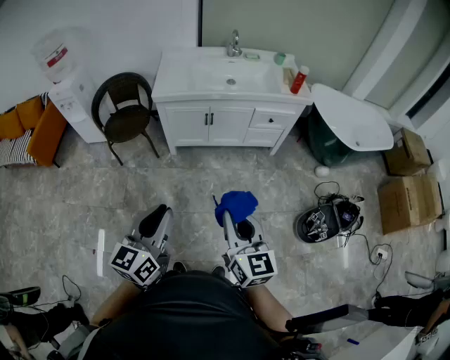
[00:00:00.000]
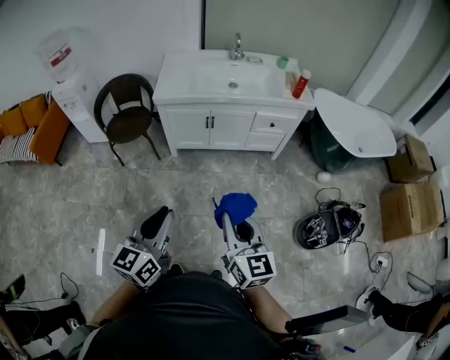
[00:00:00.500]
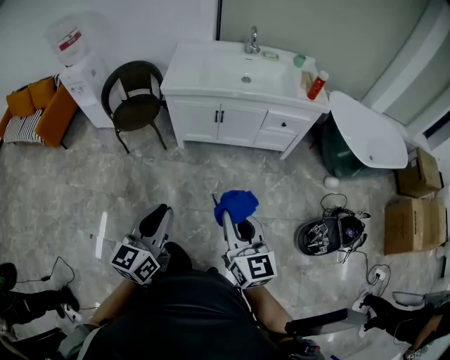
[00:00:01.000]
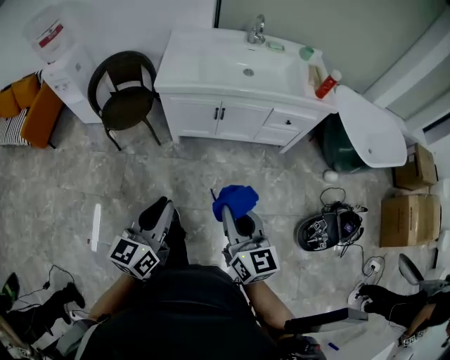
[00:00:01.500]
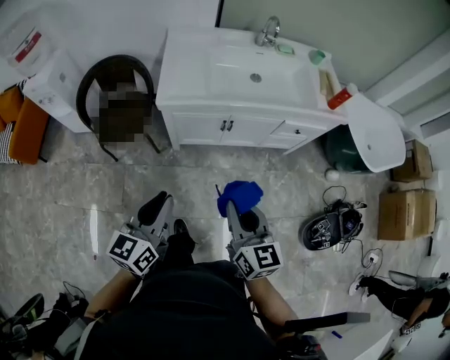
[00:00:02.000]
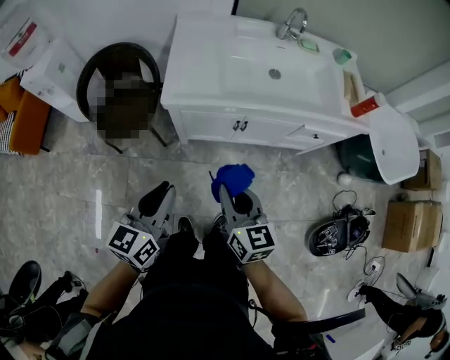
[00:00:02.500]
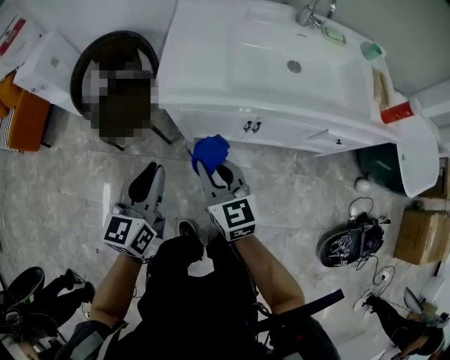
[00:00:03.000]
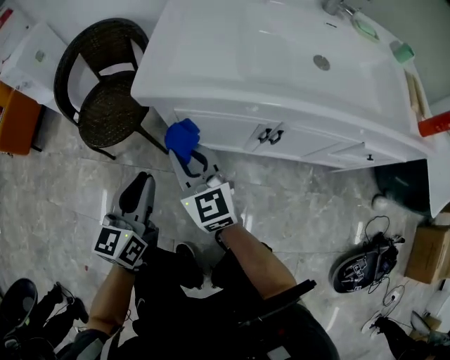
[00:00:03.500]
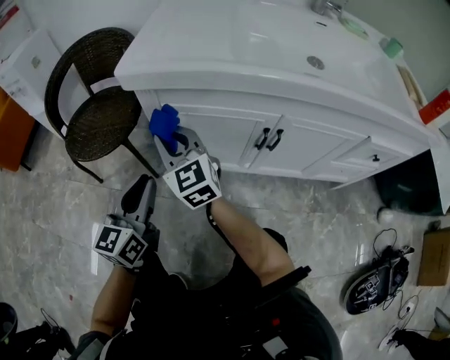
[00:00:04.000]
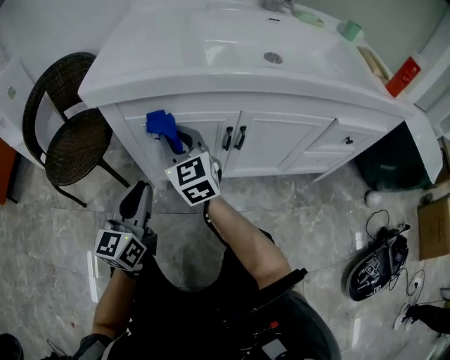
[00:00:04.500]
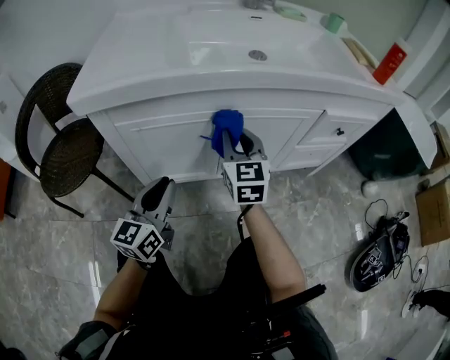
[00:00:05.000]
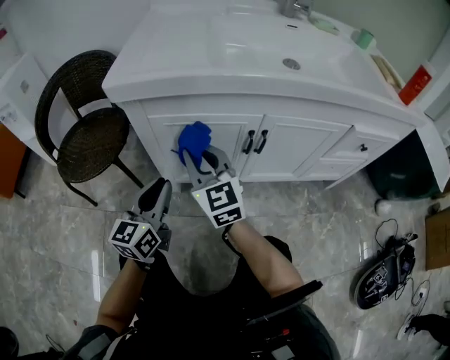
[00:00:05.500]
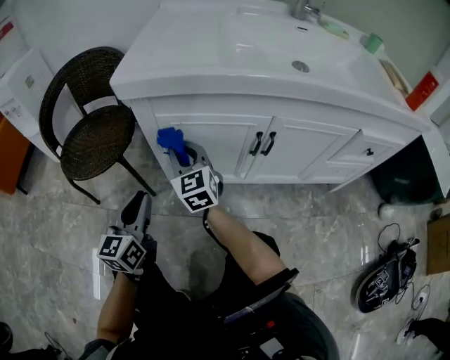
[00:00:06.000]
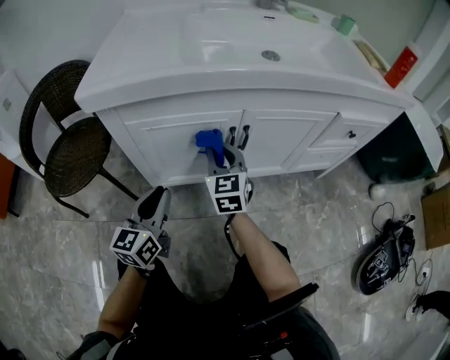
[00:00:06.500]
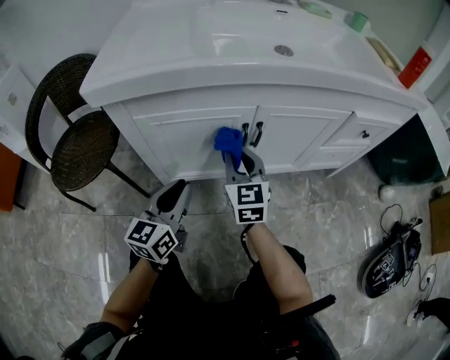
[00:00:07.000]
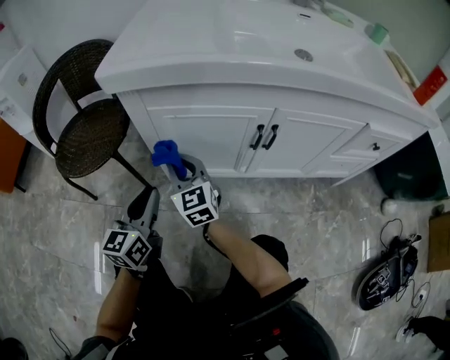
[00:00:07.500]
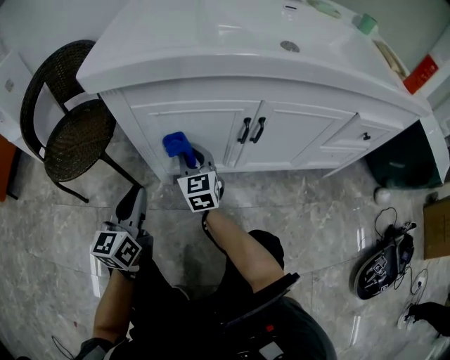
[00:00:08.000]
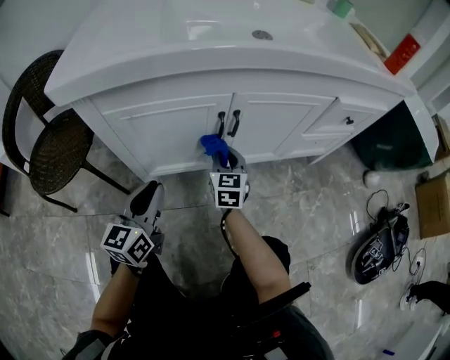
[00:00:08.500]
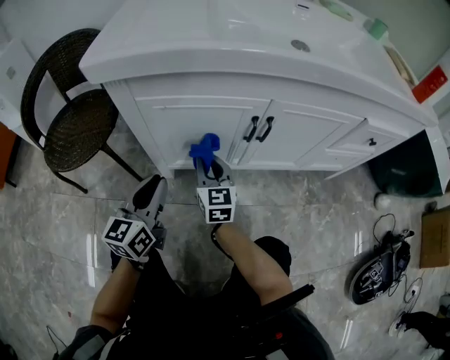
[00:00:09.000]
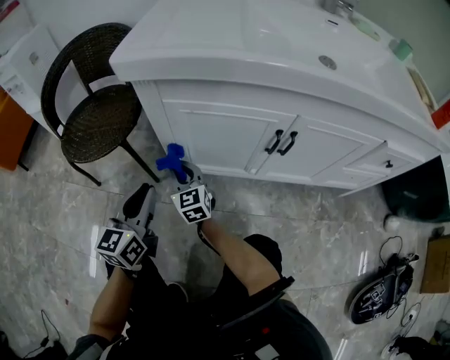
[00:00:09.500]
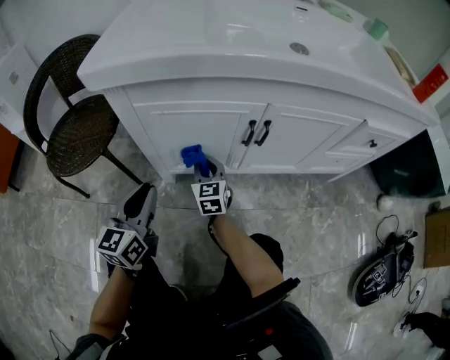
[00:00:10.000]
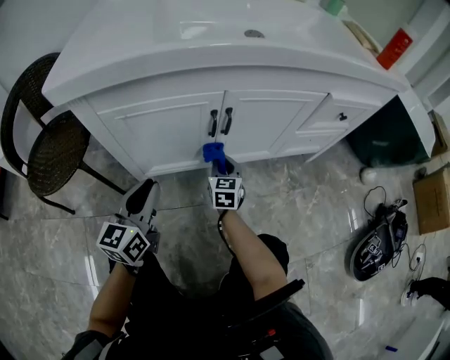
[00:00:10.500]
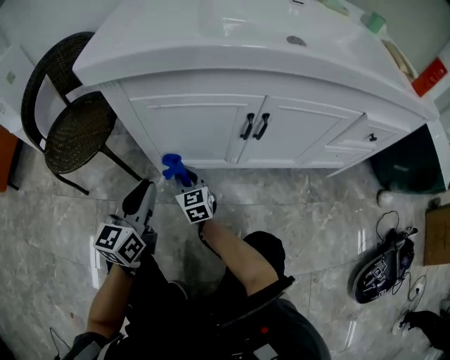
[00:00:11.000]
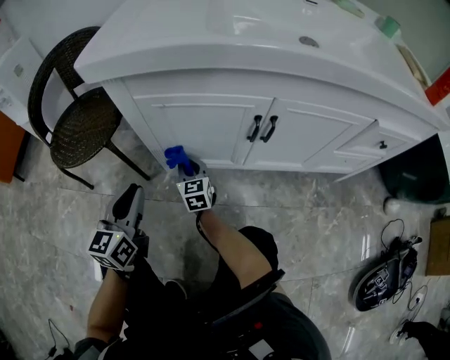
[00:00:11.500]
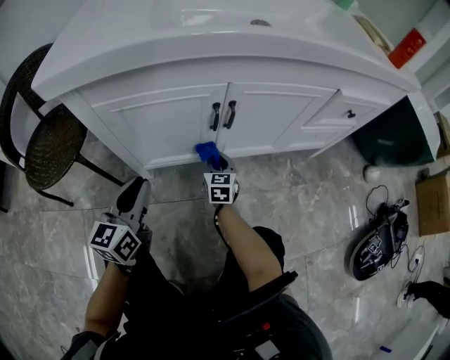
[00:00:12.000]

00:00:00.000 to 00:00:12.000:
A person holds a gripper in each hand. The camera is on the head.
00:00:00.000 to 00:00:02.000: The grippers both shift forward and to the left by some 35 cm.
00:00:02.000 to 00:00:04.000: The left gripper goes about 50 cm downward and forward, while the right gripper is displaced downward, forward and to the left by approximately 60 cm, and rotates some 40 degrees.
00:00:04.000 to 00:00:06.000: The two grippers go roughly 5 cm downward.
00:00:06.000 to 00:00:08.000: The left gripper travels to the right and back again, some 15 cm each way. The right gripper moves left and right over approximately 20 cm, changing direction 2 times.
00:00:08.000 to 00:00:10.000: The right gripper goes about 10 cm downward.
00:00:10.000 to 00:00:12.000: The right gripper swings left and right, about 25 cm each way, with 2 reversals. The left gripper swings left and right, roughly 10 cm each way, with 2 reversals.

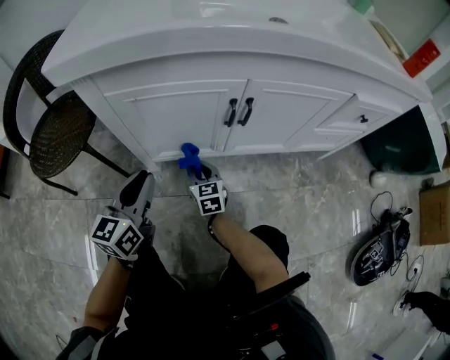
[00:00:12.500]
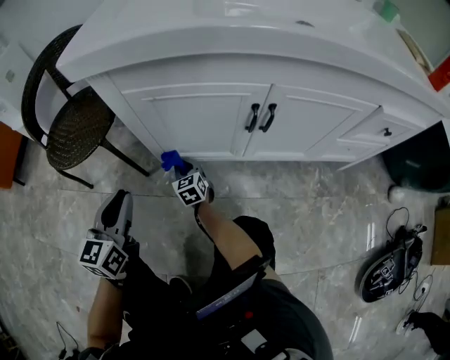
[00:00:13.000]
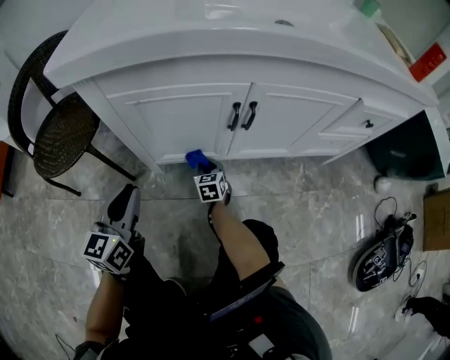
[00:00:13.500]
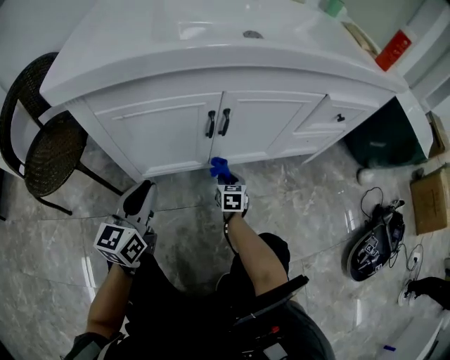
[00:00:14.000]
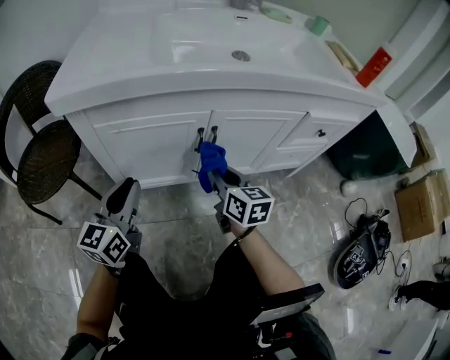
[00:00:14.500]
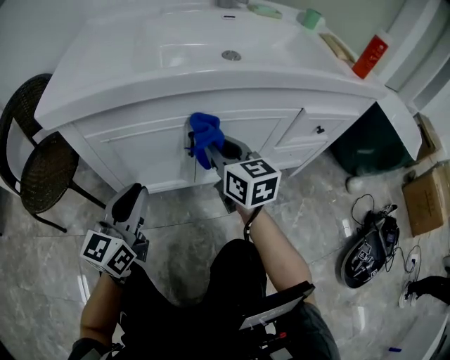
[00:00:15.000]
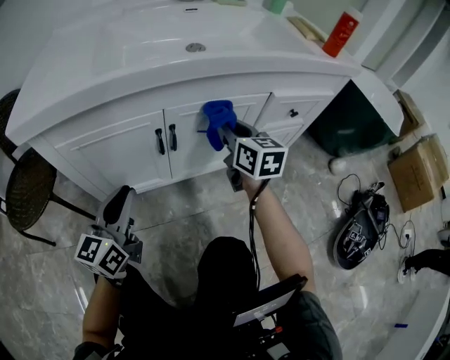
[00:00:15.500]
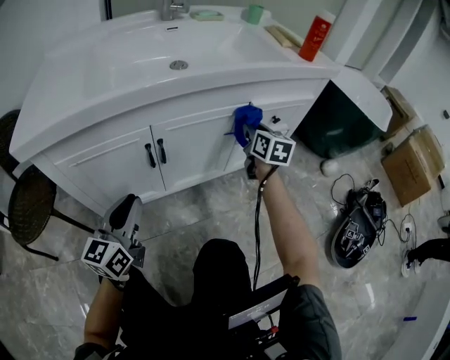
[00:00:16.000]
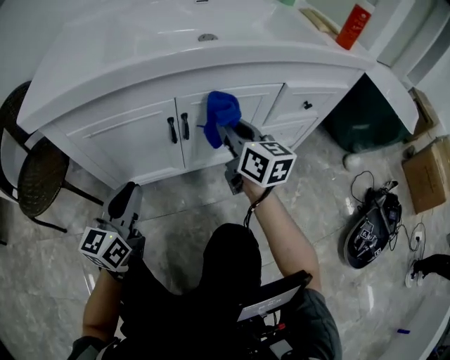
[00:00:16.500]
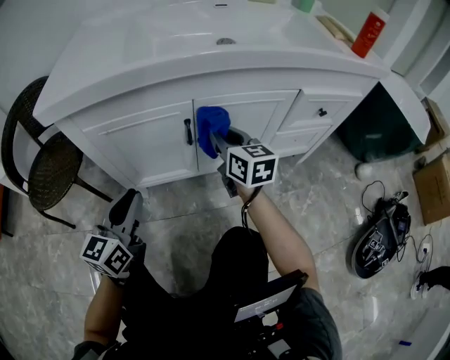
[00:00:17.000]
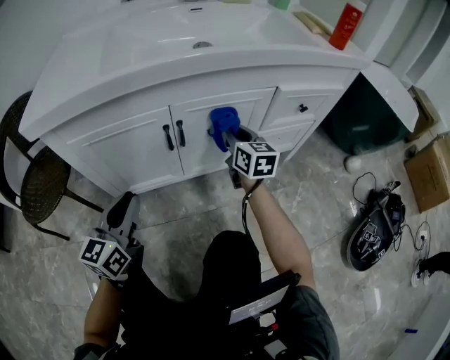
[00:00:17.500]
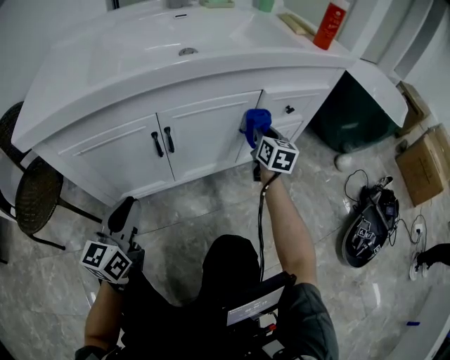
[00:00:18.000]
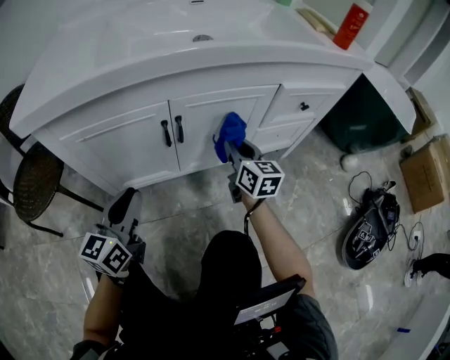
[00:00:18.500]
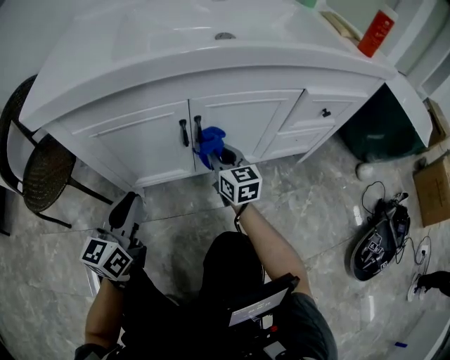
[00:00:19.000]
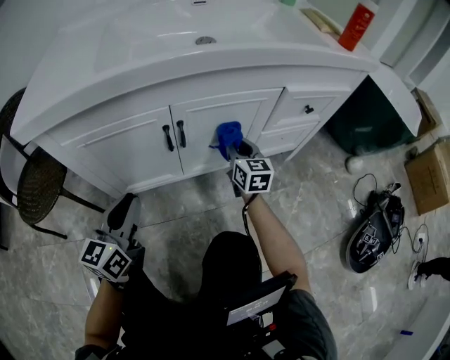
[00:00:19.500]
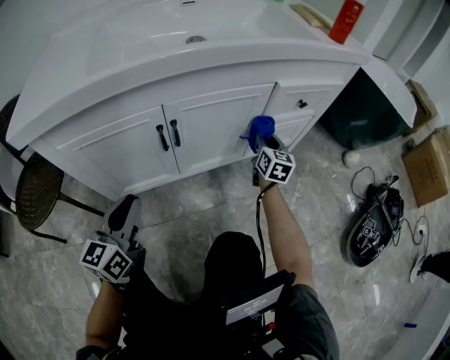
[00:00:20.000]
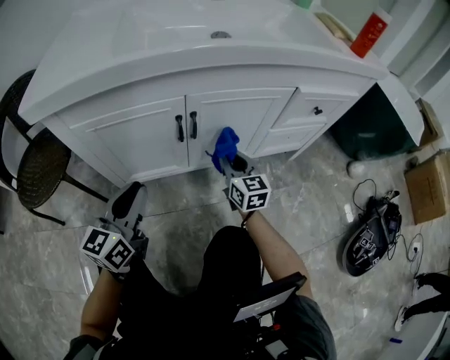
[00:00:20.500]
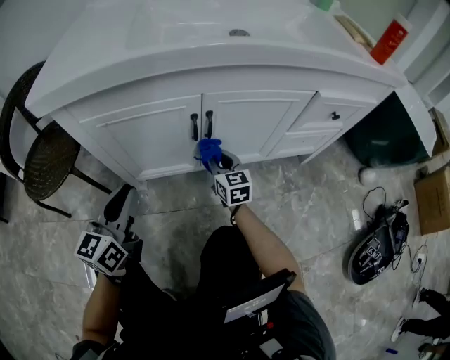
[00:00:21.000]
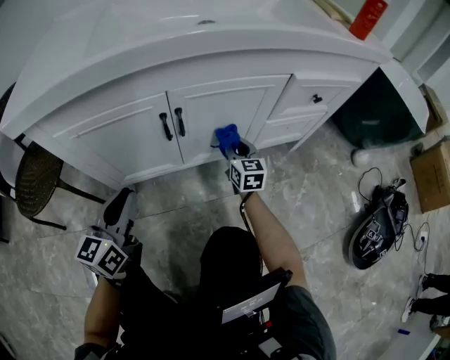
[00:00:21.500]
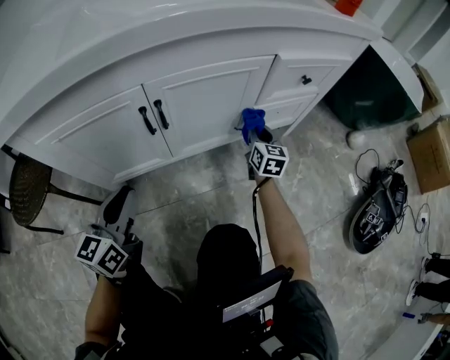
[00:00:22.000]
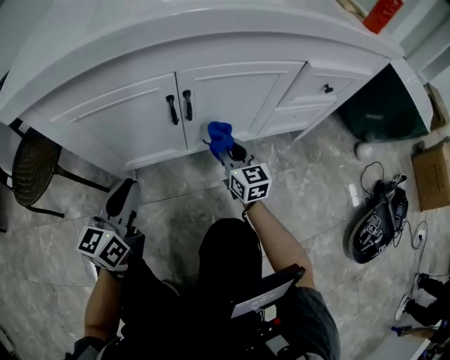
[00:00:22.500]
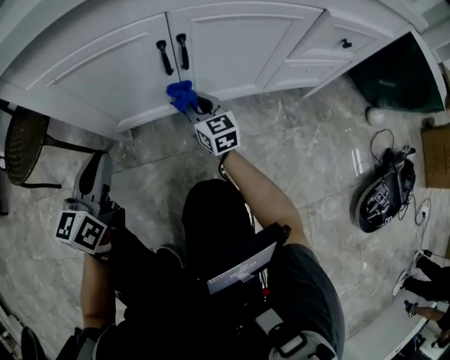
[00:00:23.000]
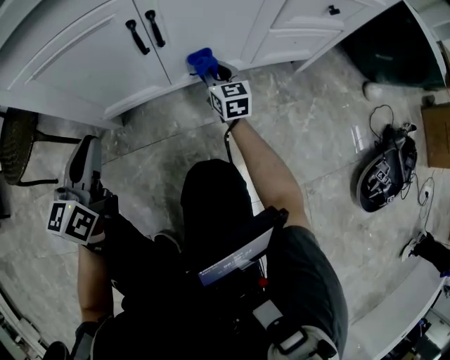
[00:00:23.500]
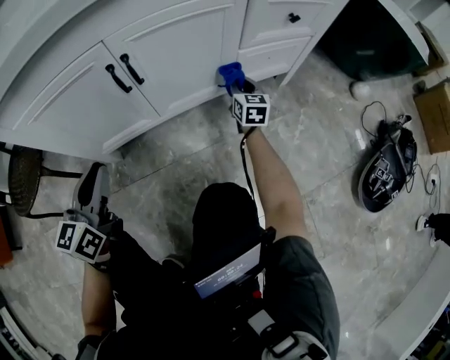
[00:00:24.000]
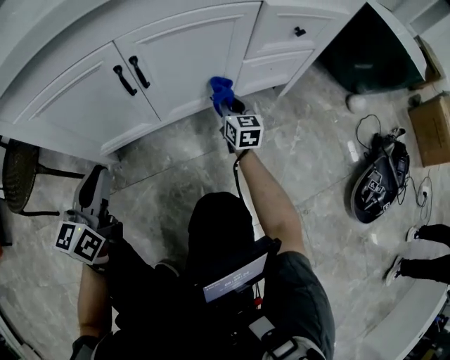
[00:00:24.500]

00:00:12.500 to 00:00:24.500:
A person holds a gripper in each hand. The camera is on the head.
00:00:12.500 to 00:00:14.500: The right gripper is displaced upward by some 20 cm. Meanwhile the left gripper moves upward, about 5 cm.
00:00:14.500 to 00:00:16.500: The right gripper travels upward and forward by about 10 cm, and travels to the right and back again, about 25 cm each way; the left gripper goes roughly 5 cm to the right.
00:00:16.500 to 00:00:18.500: The right gripper moves left and right over some 25 cm, changing direction 2 times.
00:00:18.500 to 00:00:20.500: The right gripper goes left and right, approximately 25 cm each way, reversing 2 times.
00:00:20.500 to 00:00:22.500: The right gripper moves left and right over some 25 cm, changing direction 2 times. The left gripper swings left and right, approximately 10 cm each way, with 2 reversals.
00:00:22.500 to 00:00:24.500: The left gripper moves some 5 cm to the left and comes back; the right gripper swings left and right, about 30 cm each way, with 2 reversals.

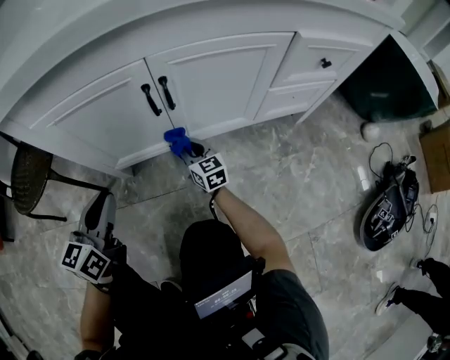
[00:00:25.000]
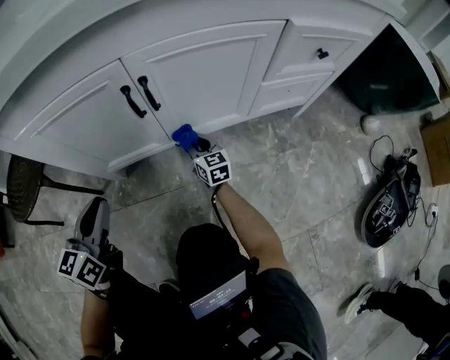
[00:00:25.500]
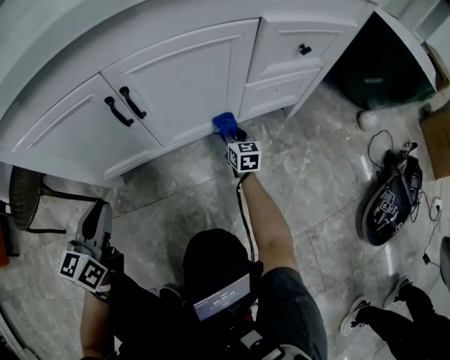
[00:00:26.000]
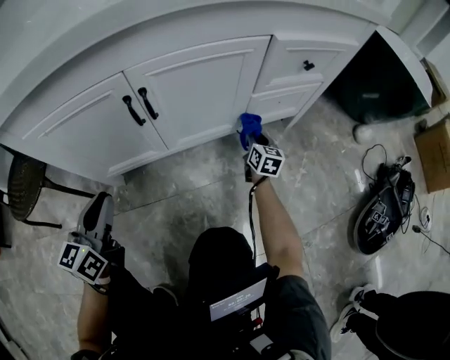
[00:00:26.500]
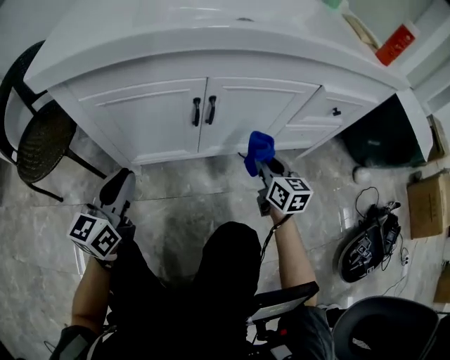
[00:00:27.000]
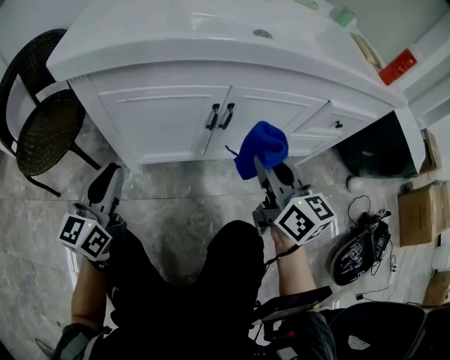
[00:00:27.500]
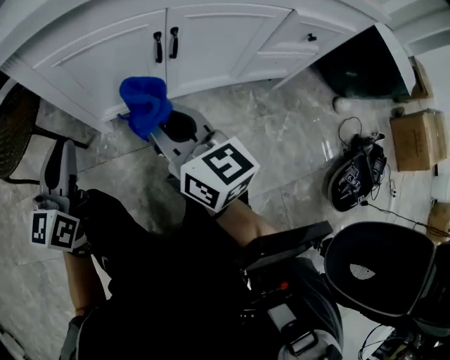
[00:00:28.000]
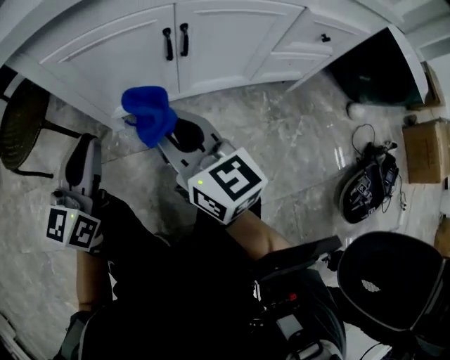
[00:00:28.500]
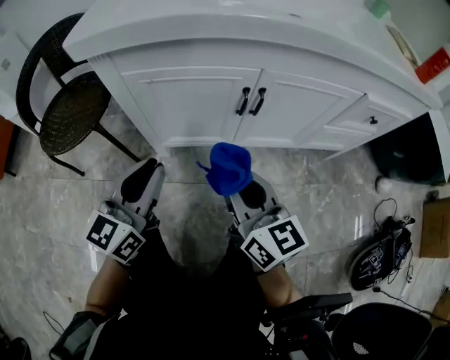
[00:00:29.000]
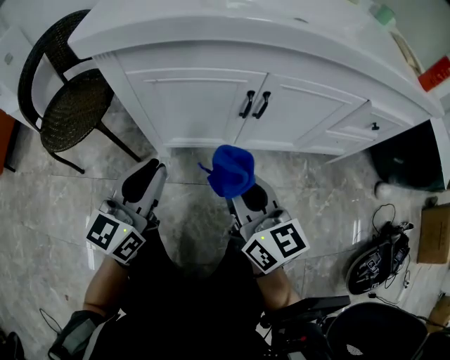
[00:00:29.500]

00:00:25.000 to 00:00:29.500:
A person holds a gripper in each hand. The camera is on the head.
00:00:25.000 to 00:00:27.000: The left gripper ends up about 5 cm from where it was; the right gripper moves to the right and upward, approximately 25 cm.
00:00:27.000 to 00:00:29.500: The right gripper heads to the left, upward and backward, covering about 30 cm, and swivels roughly 20 degrees. The left gripper ends up about 5 cm from where it was.
